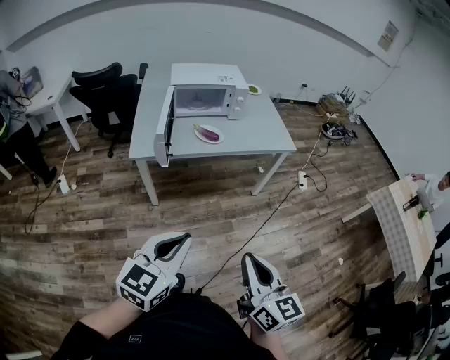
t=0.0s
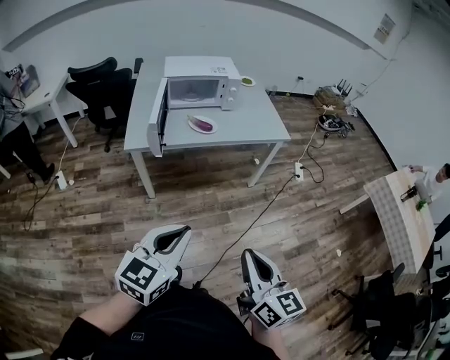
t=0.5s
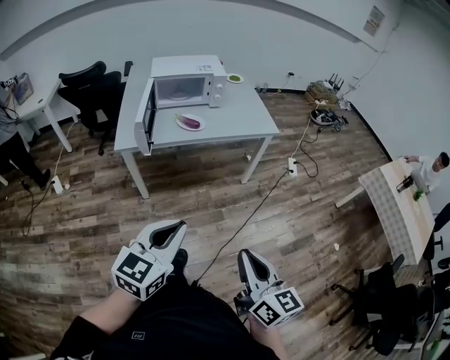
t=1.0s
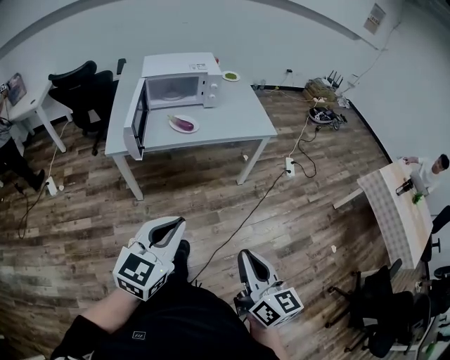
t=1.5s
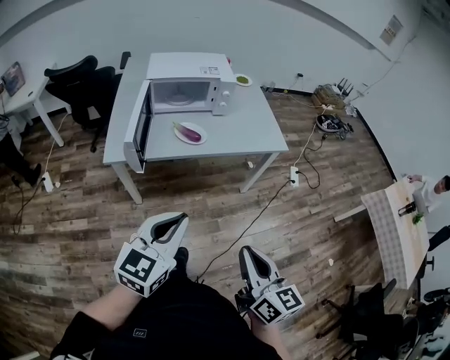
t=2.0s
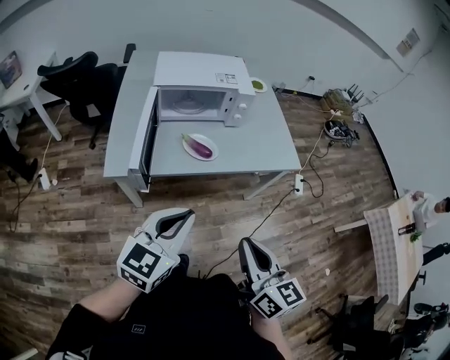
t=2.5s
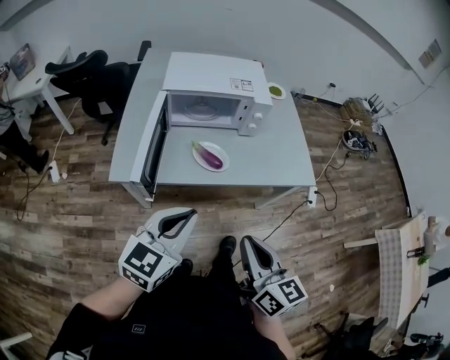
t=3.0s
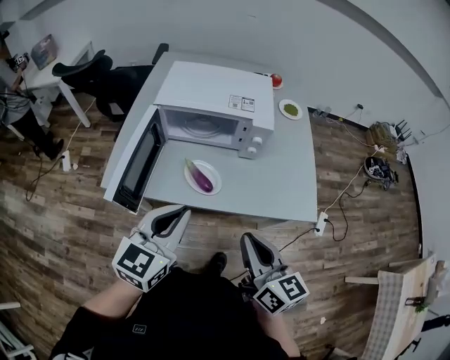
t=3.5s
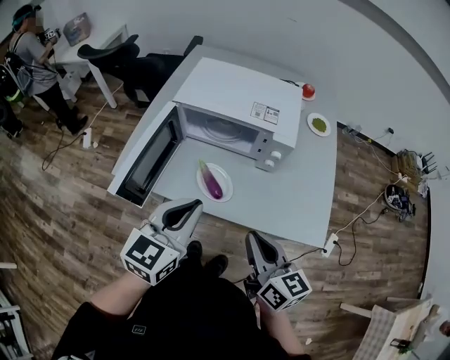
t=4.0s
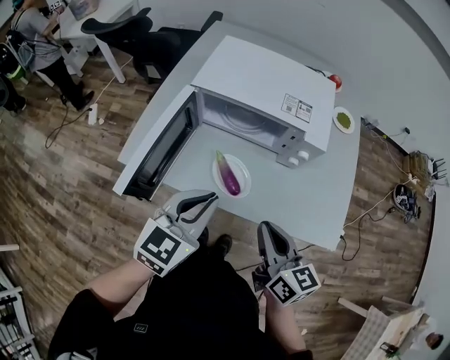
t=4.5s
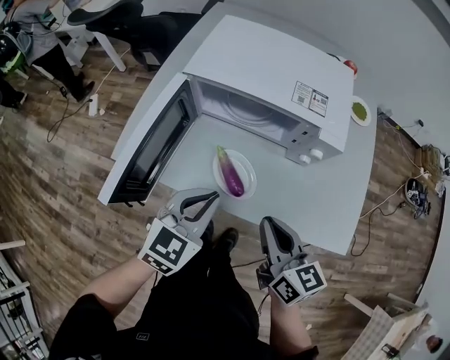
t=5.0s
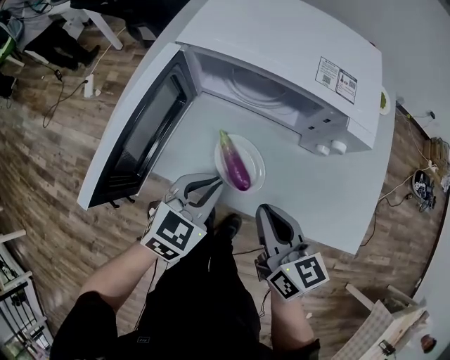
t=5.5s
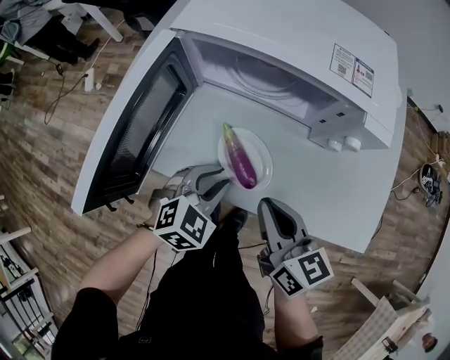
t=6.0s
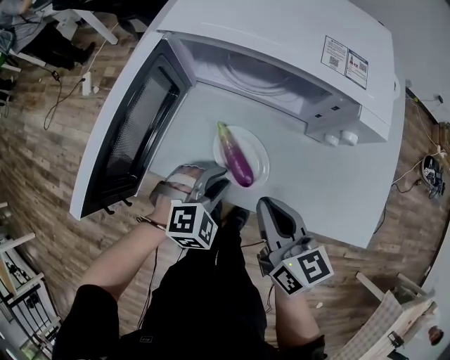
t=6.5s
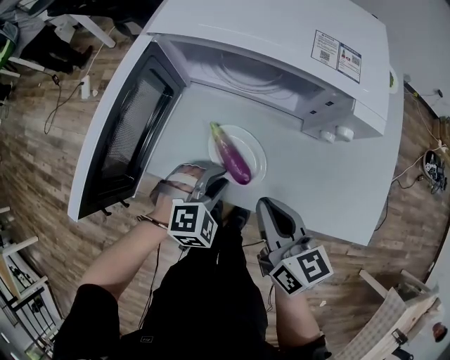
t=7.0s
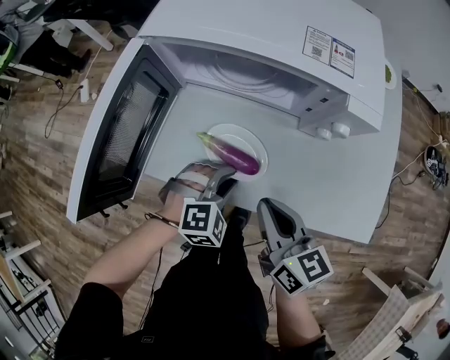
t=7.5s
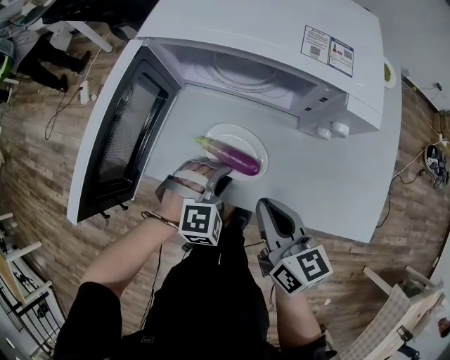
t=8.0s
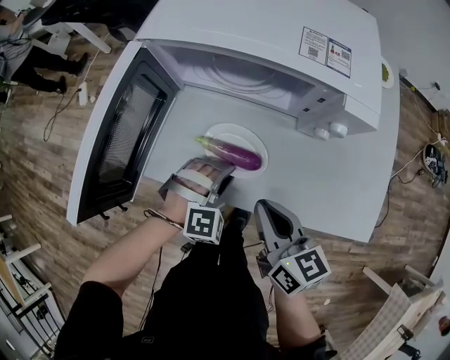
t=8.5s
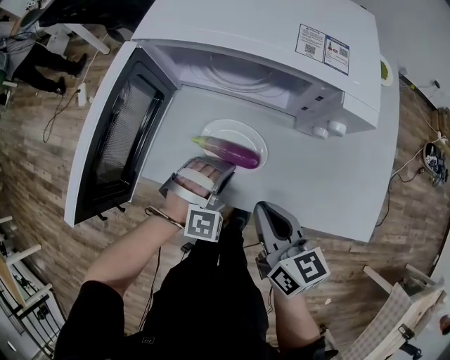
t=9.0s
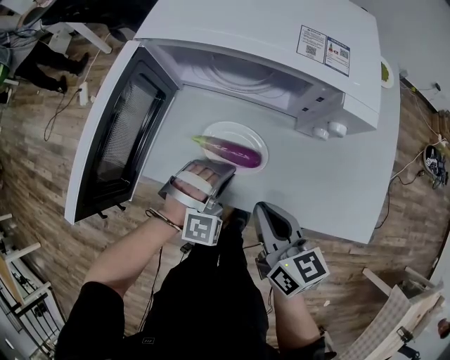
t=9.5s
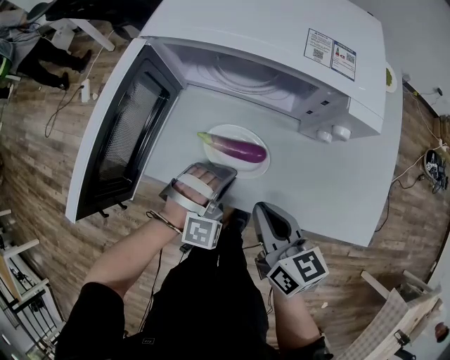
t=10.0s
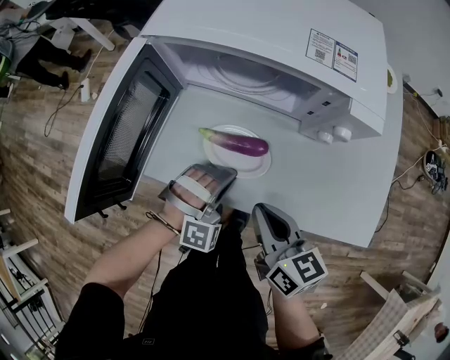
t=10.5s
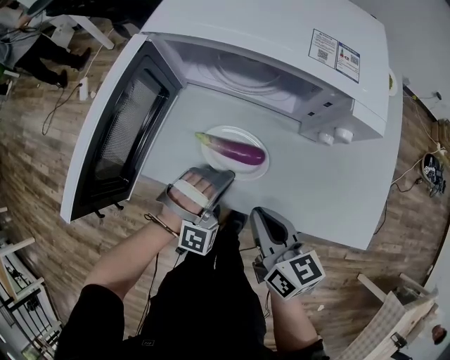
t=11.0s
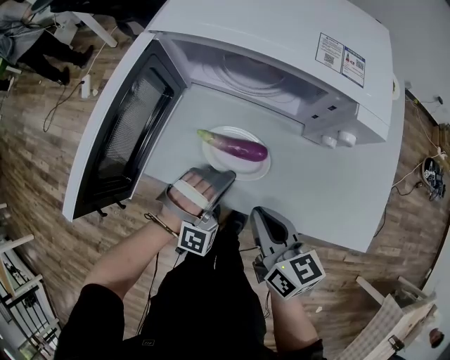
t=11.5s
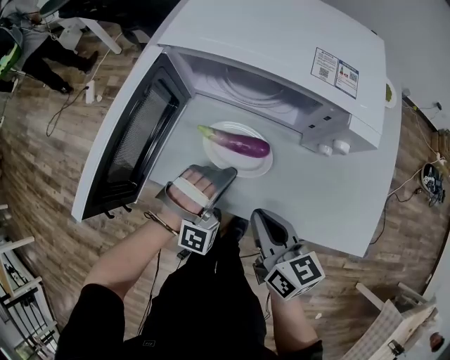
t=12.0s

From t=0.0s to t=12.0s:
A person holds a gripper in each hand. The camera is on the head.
From t=0.0s to t=2.0s: The two grippers go approximately 15 cm forward.
From t=2.0s to t=4.0s: The left gripper moves roughly 35 cm, and turns by roughly 30 degrees, while the right gripper changes place by roughly 40 cm, and swivels approximately 30 degrees.
From t=4.0s to t=6.0s: The left gripper shifts roughly 30 cm downward, and tips its fingers downward by about 30 degrees, while the right gripper heads downward, forward and to the left, covering approximately 20 cm.
From t=6.0s to t=8.0s: The left gripper is displaced downward by roughly 5 cm, and rotates about 40 degrees.
From t=8.0s to t=10.0s: The left gripper rotates about 20 degrees.
From t=10.0s to t=12.0s: The left gripper ends up approximately 5 cm from where it was.

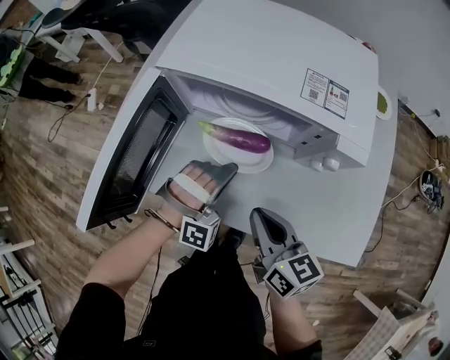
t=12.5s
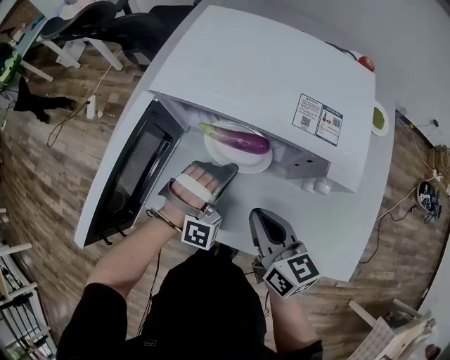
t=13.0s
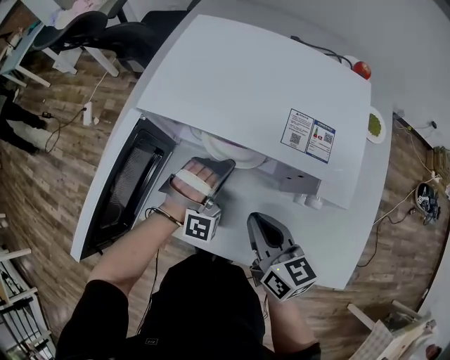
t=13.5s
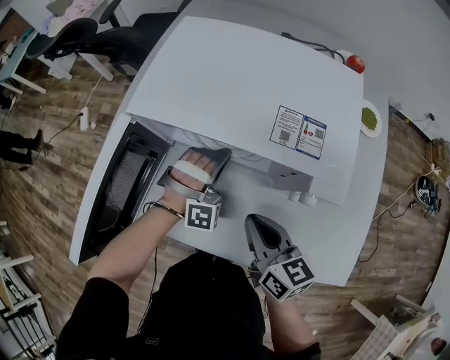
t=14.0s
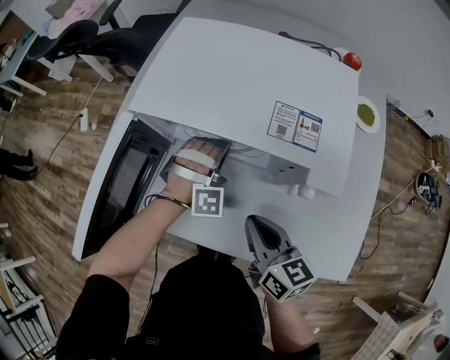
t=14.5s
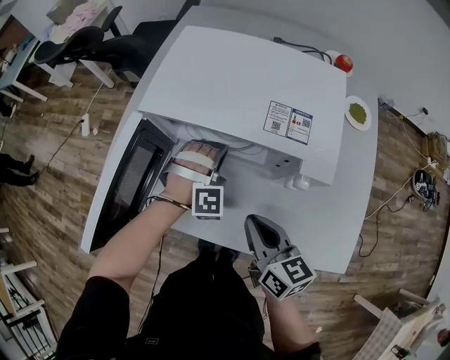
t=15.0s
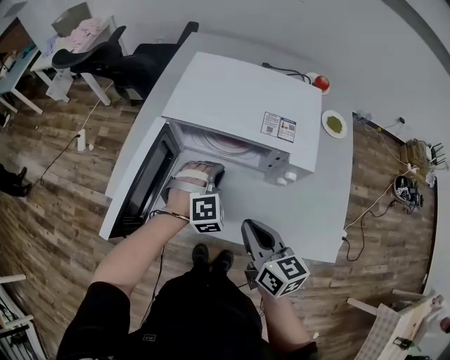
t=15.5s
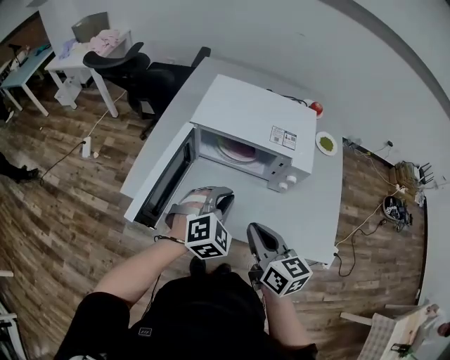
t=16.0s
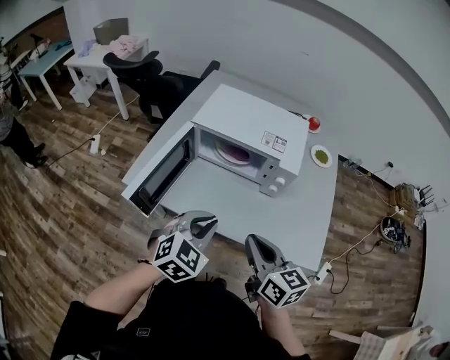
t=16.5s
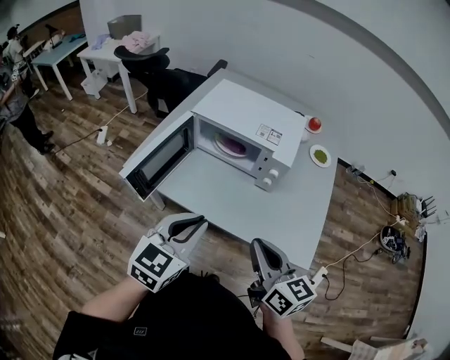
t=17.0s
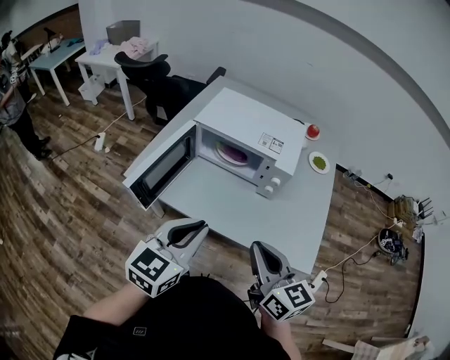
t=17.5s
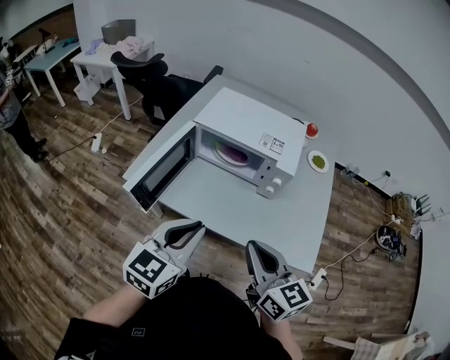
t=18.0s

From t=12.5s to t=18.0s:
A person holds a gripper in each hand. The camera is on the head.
From t=12.5s to t=14.5s: The left gripper moves forward, about 15 cm. The right gripper moves about 5 cm.
From t=14.5s to t=16.0s: The left gripper goes some 25 cm backward and upward, and rotates some 40 degrees, while the right gripper travels upward, backward and to the left by some 20 cm.
From t=16.0s to t=18.0s: The left gripper shifts approximately 20 cm backward and upward, and twists roughly 40 degrees counterclockwise, seen from behind. The right gripper heads backward and upward, covering some 15 cm.

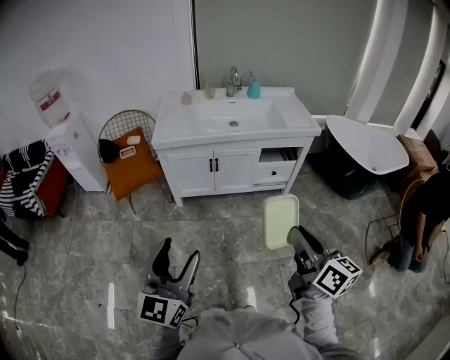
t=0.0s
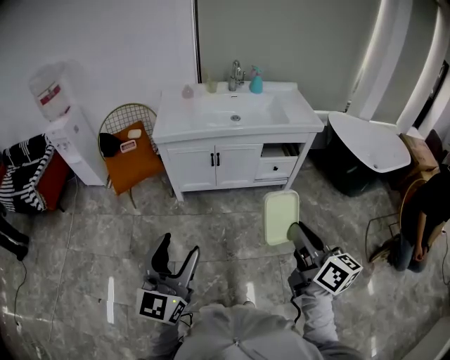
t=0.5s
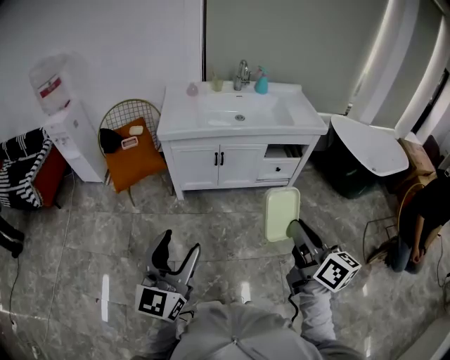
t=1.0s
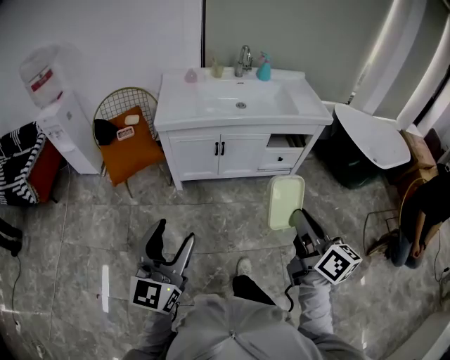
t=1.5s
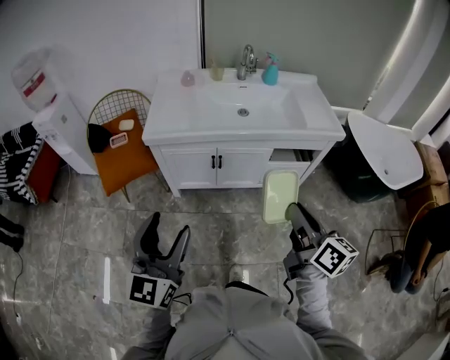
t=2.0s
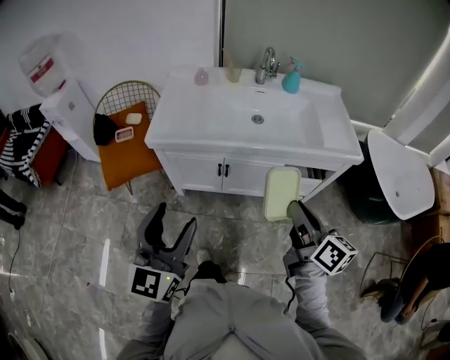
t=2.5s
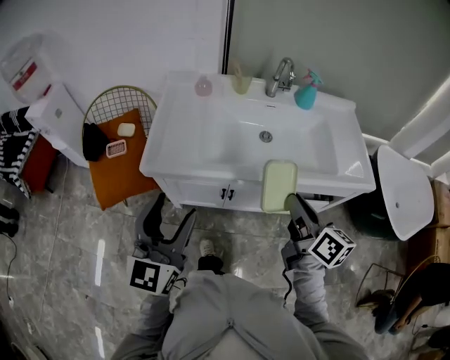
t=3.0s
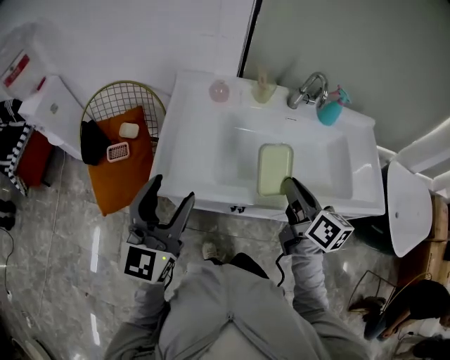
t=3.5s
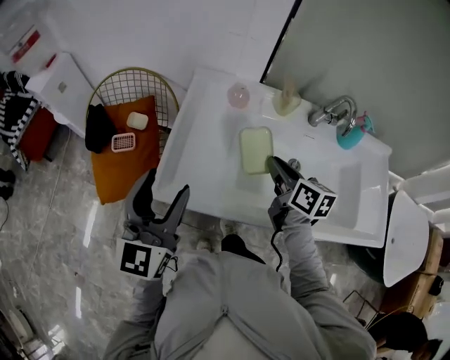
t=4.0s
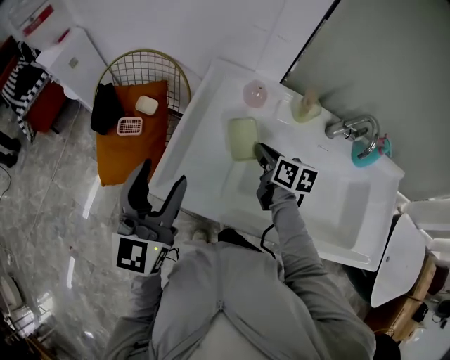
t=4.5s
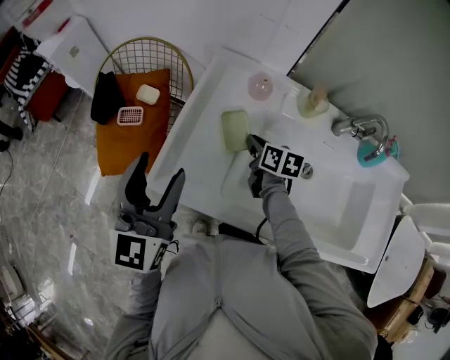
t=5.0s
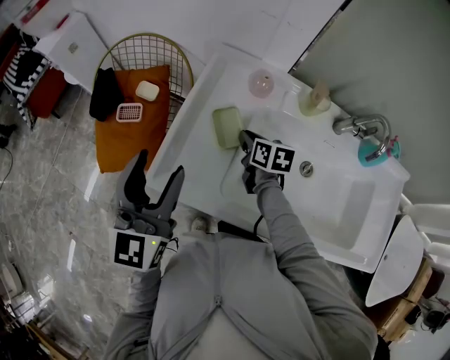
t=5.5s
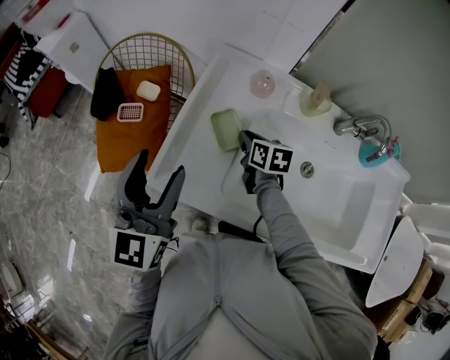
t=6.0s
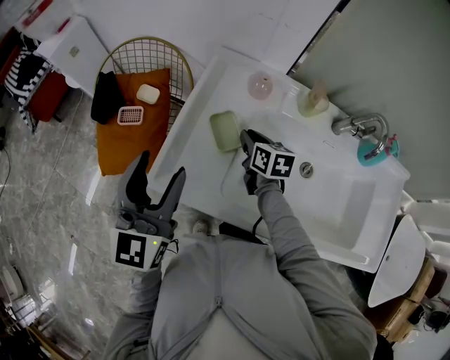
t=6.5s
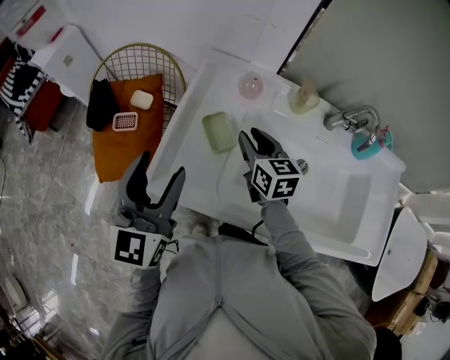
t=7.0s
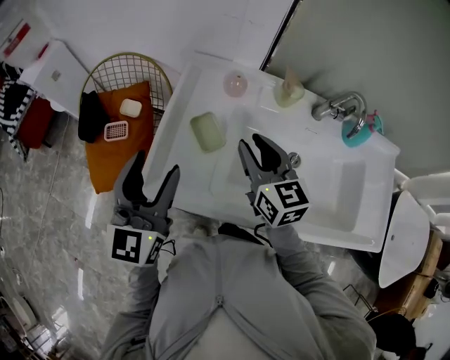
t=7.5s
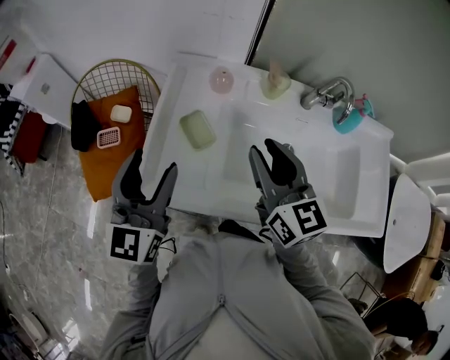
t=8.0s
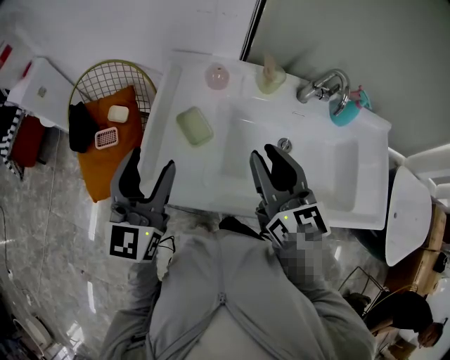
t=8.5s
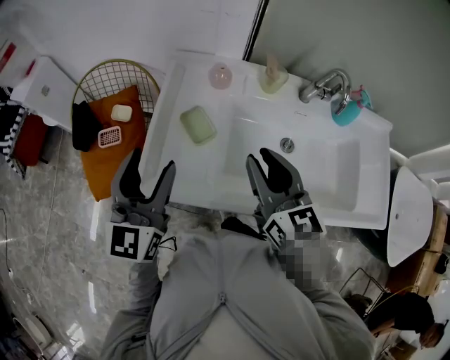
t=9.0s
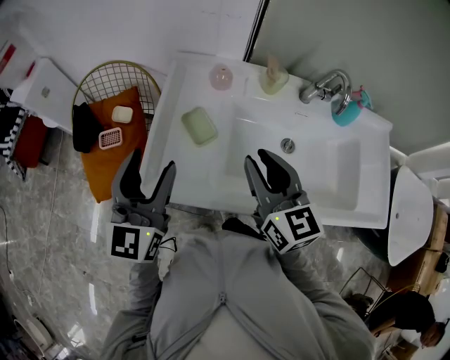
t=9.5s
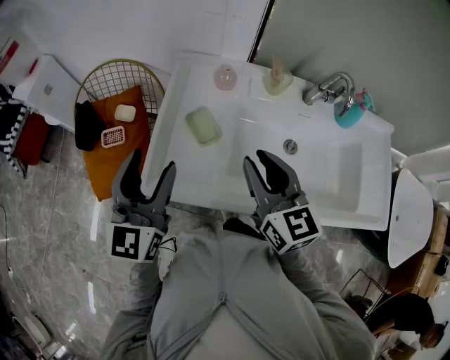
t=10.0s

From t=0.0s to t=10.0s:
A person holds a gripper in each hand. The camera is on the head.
From t=0.0s to t=2.0s: Both grippers move forward, some 25 cm.
From t=2.0s to t=4.0s: The two grippers travel together, forward, about 50 cm. The right gripper changes its angle by some 30 degrees.
From t=4.0s to t=6.0s: The left gripper shifts by about 5 cm; the right gripper is displaced downward, forward and to the left by about 20 cm, and rotates about 20 degrees.
From t=6.0s to t=8.0s: The right gripper travels upward and backward by some 25 cm, and tilts its fingers some 30 degrees upward.
From t=8.0s to t=10.0s: There are only small adjustments of the grippers.
